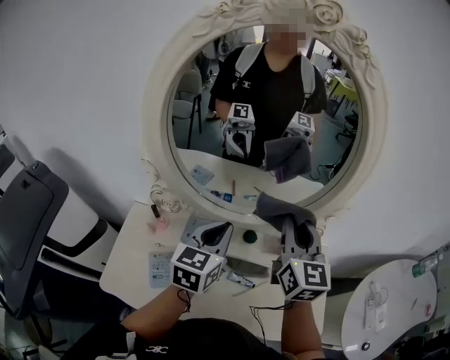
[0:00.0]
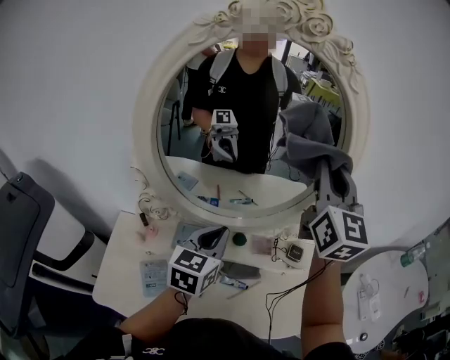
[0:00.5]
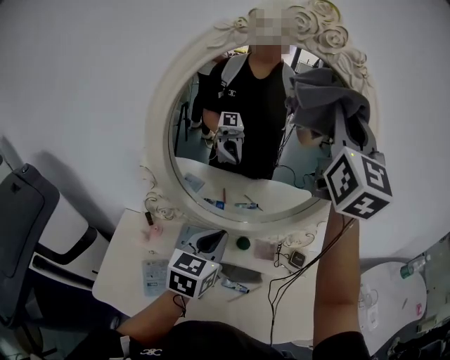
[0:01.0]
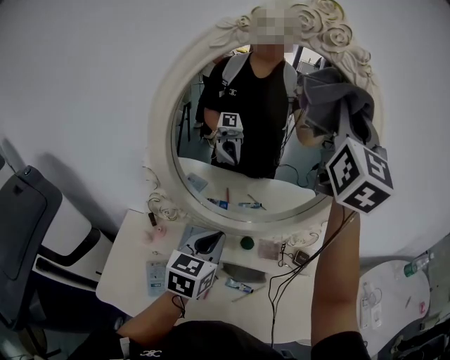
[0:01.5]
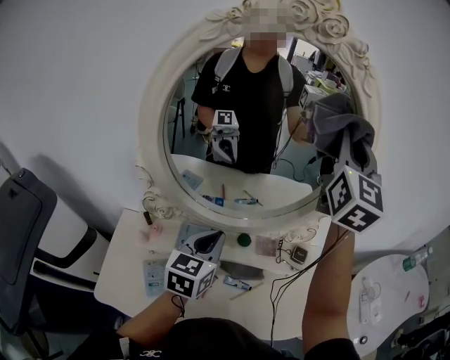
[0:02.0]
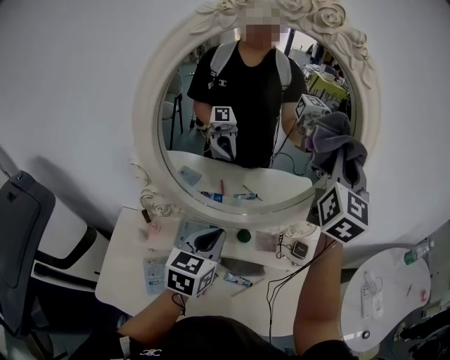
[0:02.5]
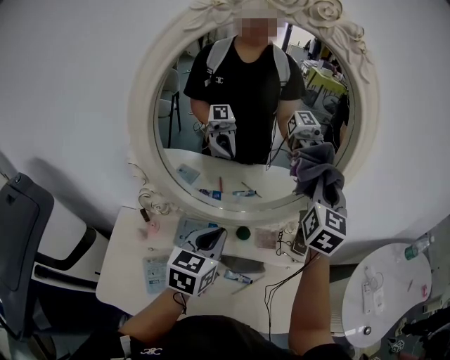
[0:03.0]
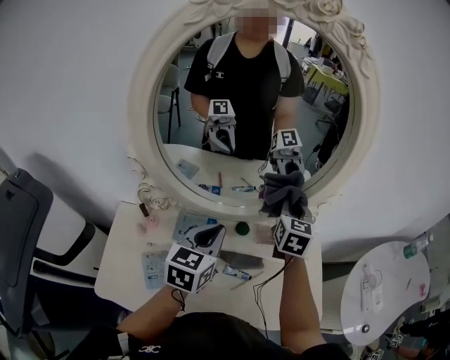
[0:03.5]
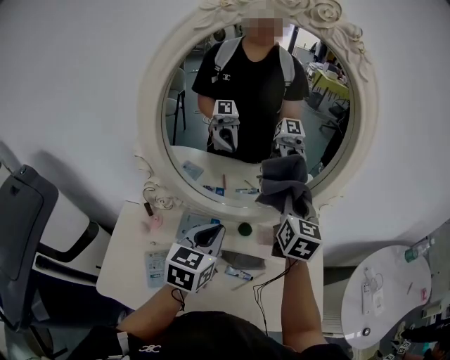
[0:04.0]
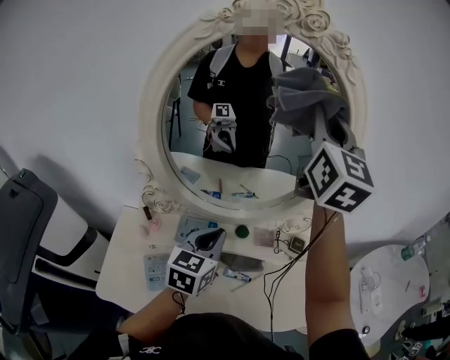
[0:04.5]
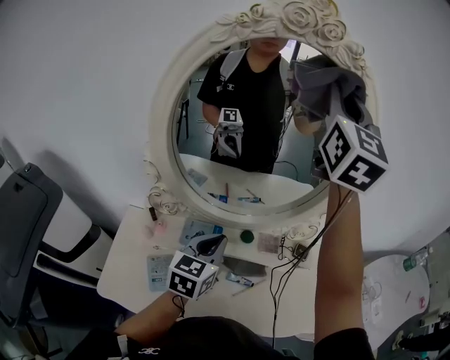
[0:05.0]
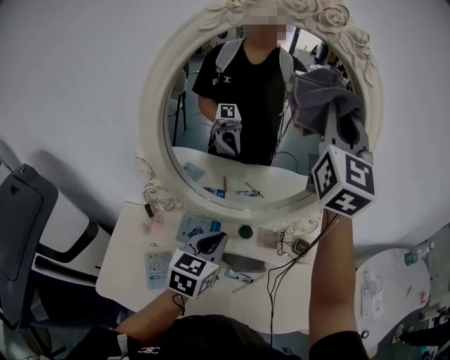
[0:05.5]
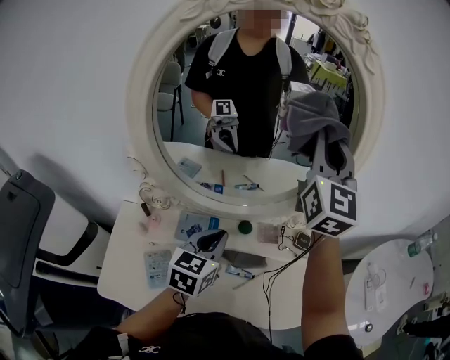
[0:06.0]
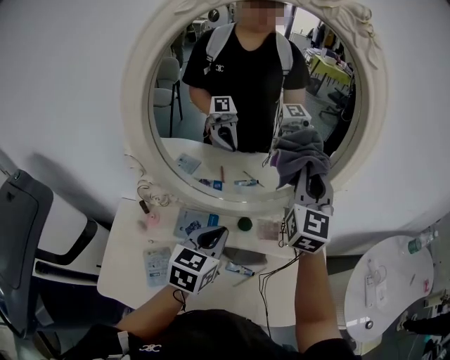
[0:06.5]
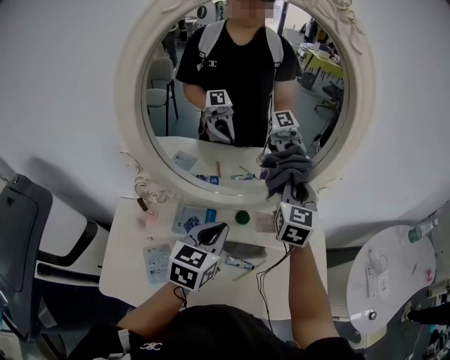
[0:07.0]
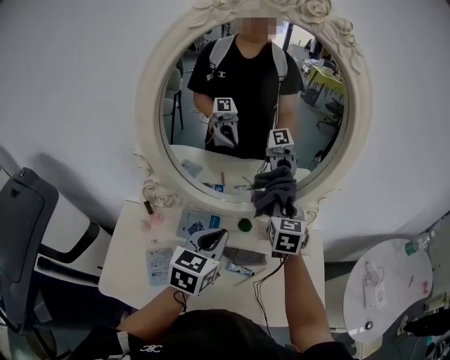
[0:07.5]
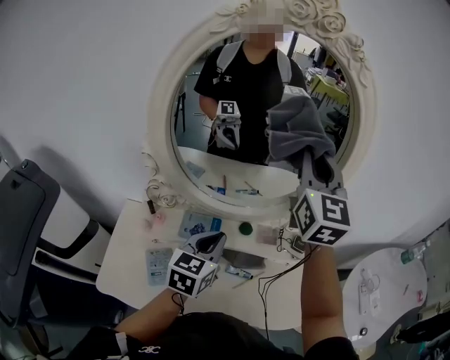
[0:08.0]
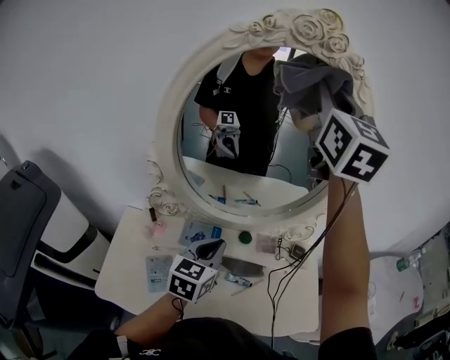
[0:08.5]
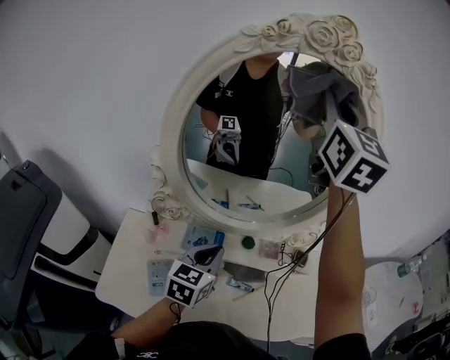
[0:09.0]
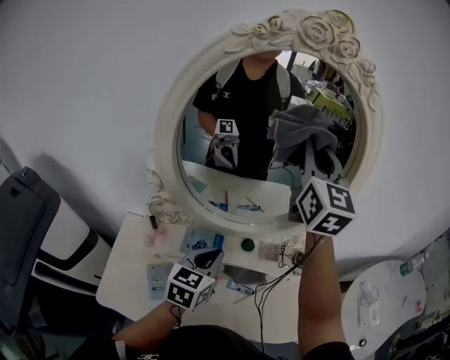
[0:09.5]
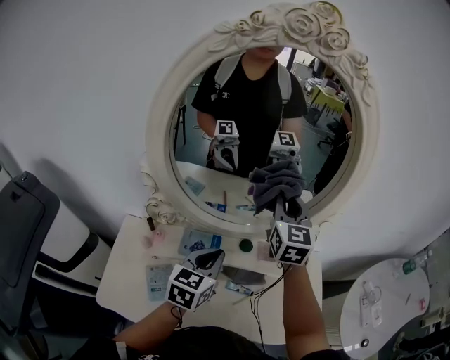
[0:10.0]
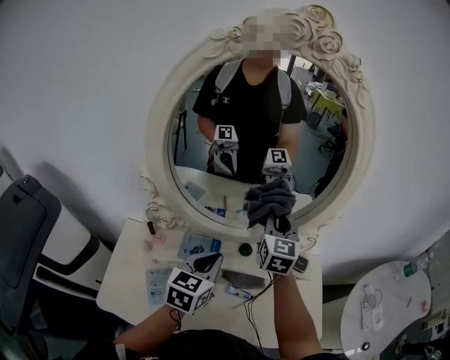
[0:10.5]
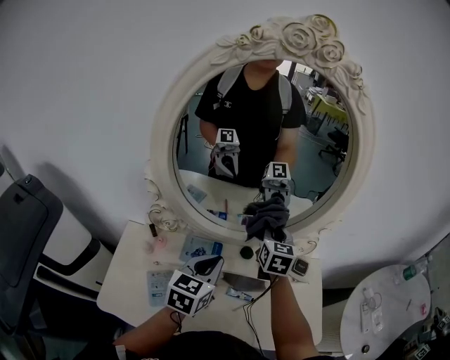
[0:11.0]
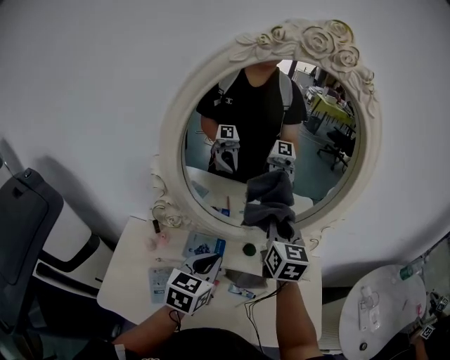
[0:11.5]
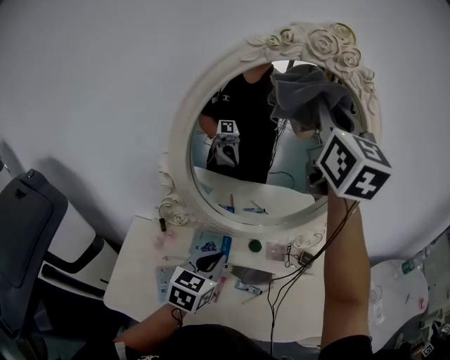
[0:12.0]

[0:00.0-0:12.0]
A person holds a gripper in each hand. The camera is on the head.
0:00.0 to 0:02.0: The right gripper is displaced upward by approximately 20 cm, and swivels about 30 degrees.
0:02.0 to 0:04.0: The right gripper heads downward, covering about 25 cm, and swivels about 30 degrees.
0:04.0 to 0:06.0: The right gripper shifts about 20 cm upward, and swivels some 30 degrees.
0:06.0 to 0:08.0: The right gripper reaches roughly 30 cm downward, then returns.
0:08.0 to 0:10.0: The right gripper goes some 15 cm downward.
0:10.0 to 0:12.0: The right gripper goes some 30 cm upward.

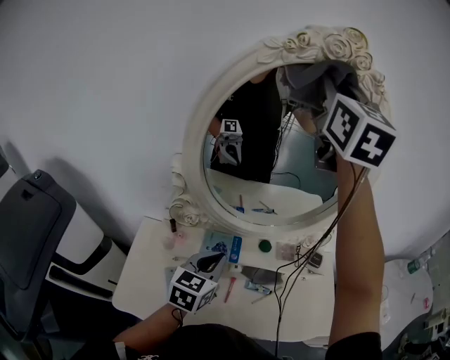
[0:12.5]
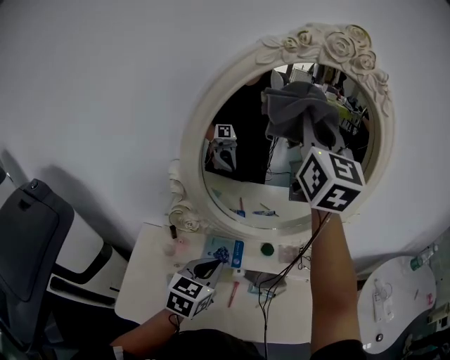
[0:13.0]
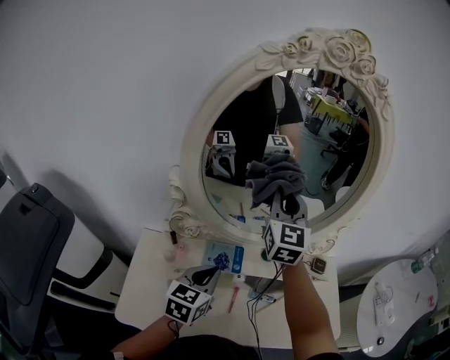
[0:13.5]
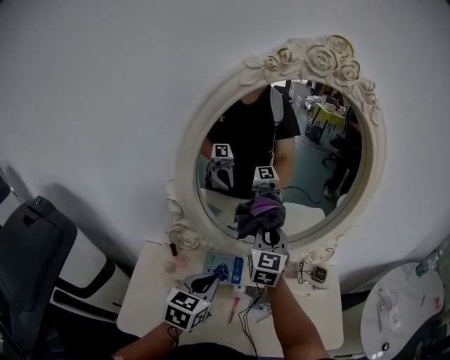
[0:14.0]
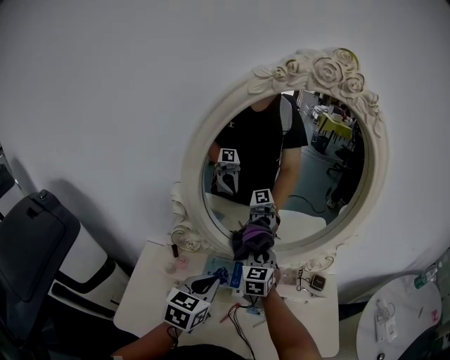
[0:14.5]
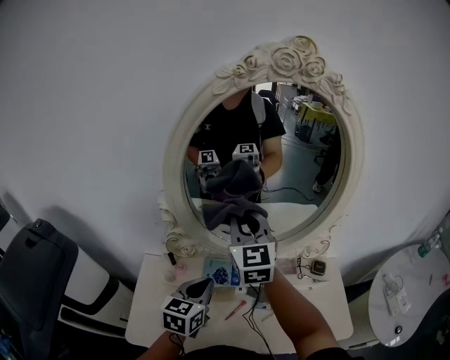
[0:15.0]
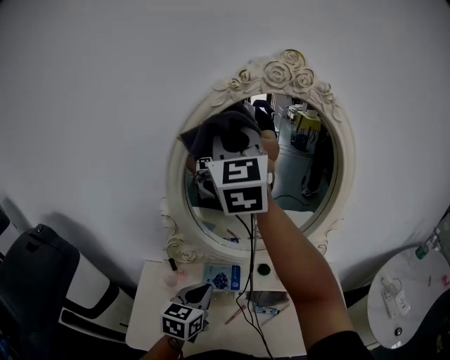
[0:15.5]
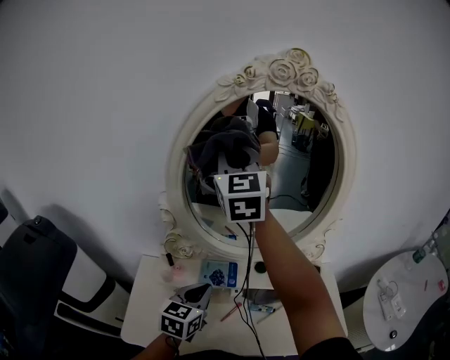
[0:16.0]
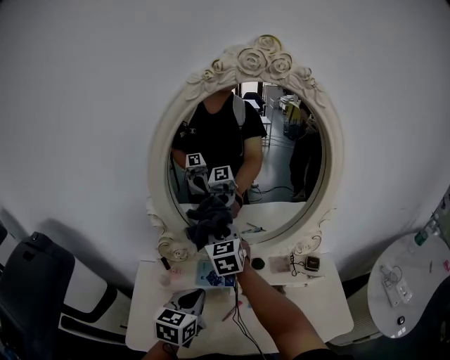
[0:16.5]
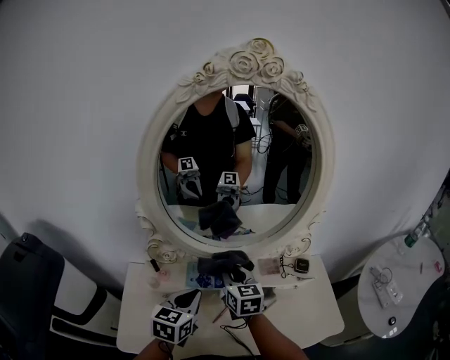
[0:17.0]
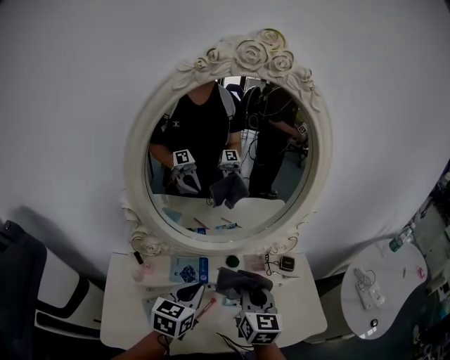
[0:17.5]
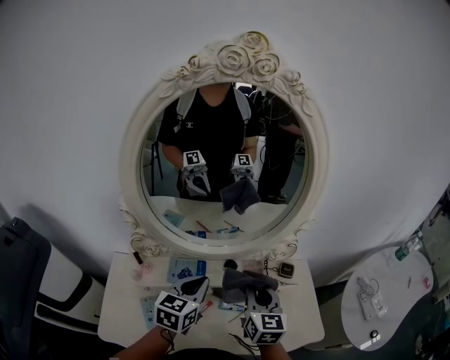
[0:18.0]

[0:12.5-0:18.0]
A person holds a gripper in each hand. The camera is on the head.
0:12.5 to 0:14.5: The right gripper moves downward, roughly 50 cm, and changes its angle by roughly 30 degrees.
0:14.5 to 0:16.0: The right gripper travels upward by approximately 40 cm, and turns by about 30 degrees.
0:16.0 to 0:18.0: The right gripper heads downward and to the right, covering some 40 cm, and turns by about 40 degrees. Meanwhile the left gripper shifts about 10 cm to the right.

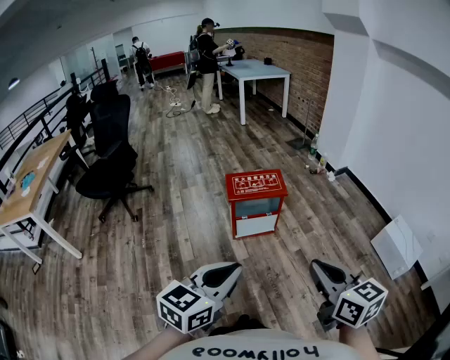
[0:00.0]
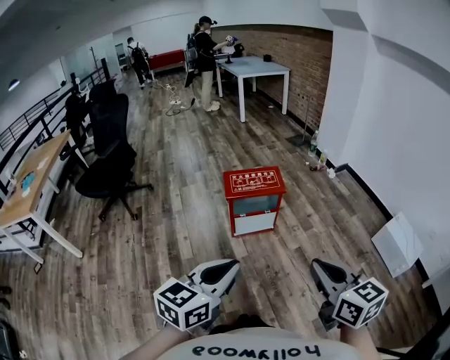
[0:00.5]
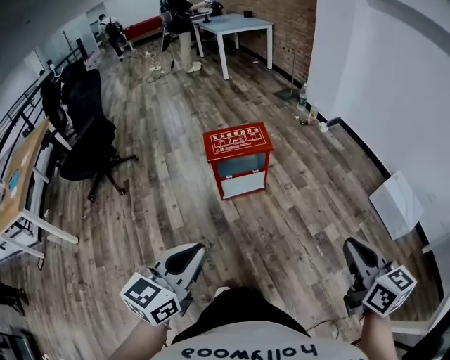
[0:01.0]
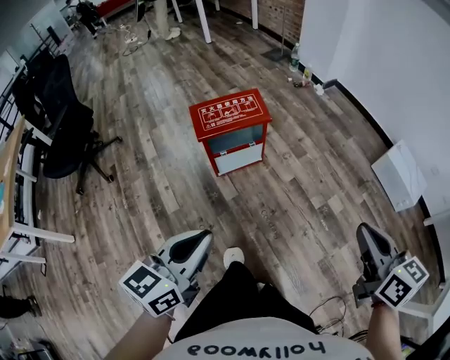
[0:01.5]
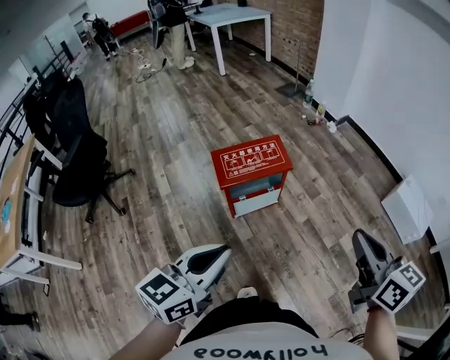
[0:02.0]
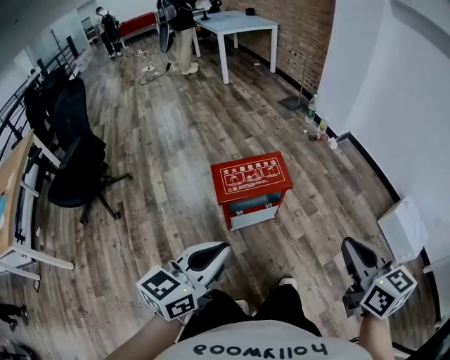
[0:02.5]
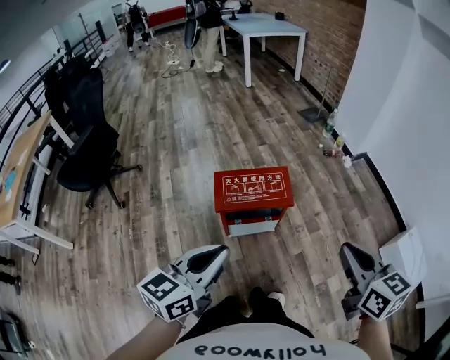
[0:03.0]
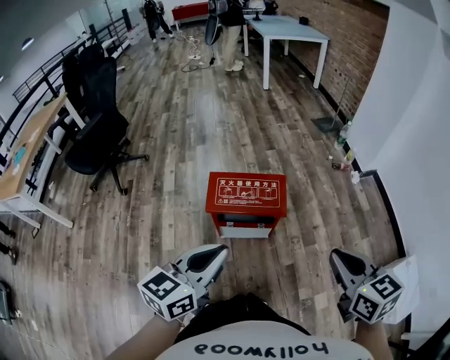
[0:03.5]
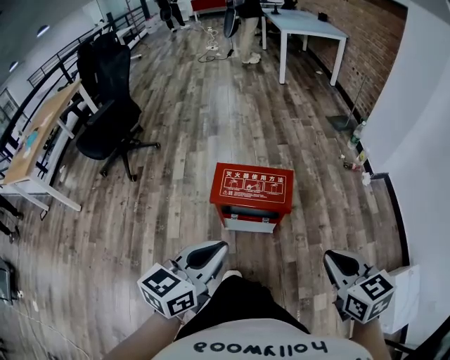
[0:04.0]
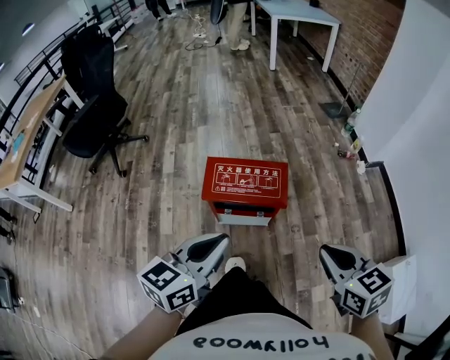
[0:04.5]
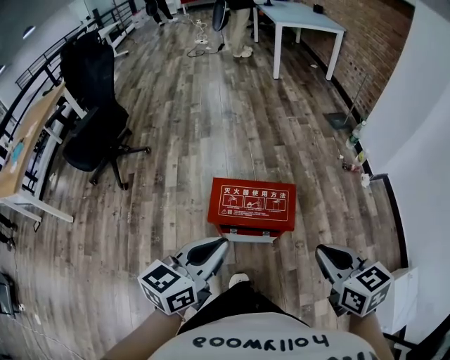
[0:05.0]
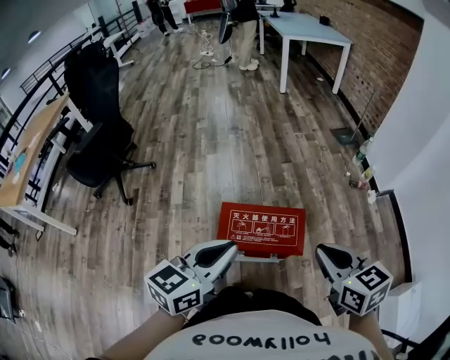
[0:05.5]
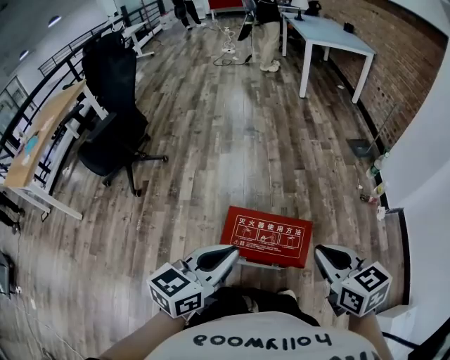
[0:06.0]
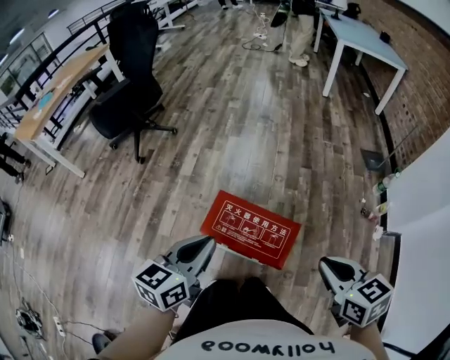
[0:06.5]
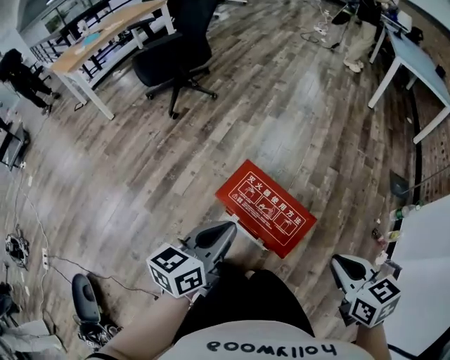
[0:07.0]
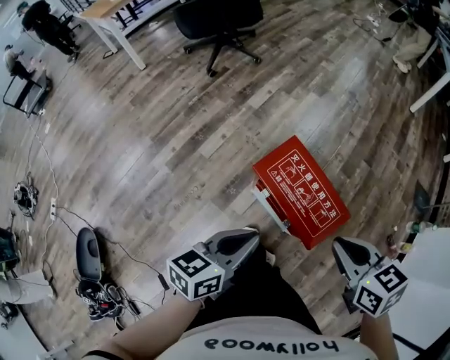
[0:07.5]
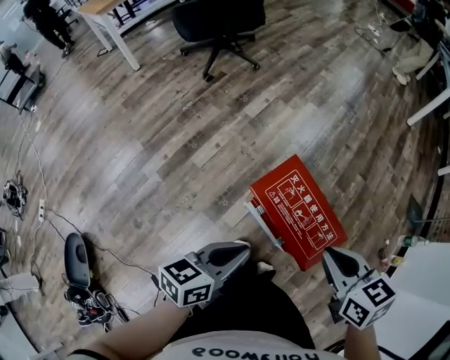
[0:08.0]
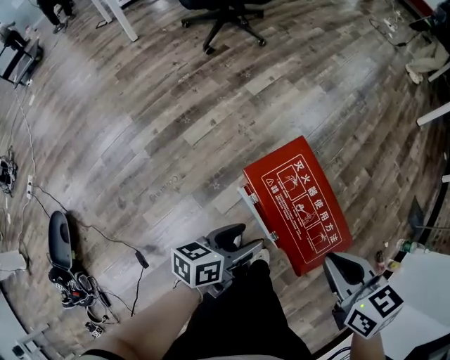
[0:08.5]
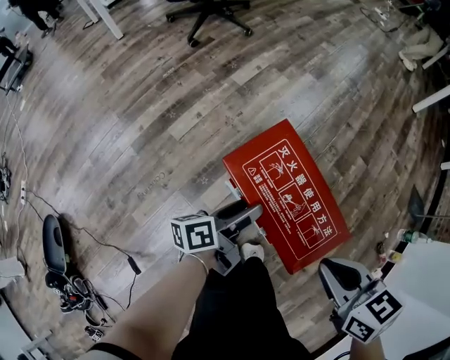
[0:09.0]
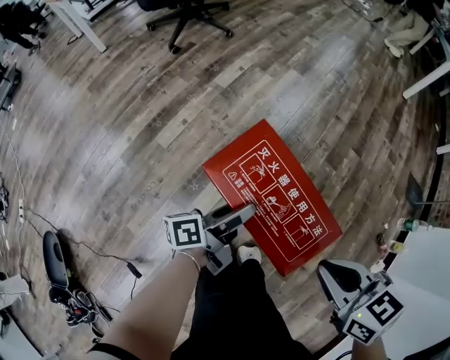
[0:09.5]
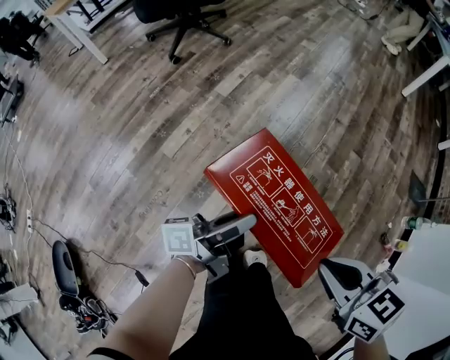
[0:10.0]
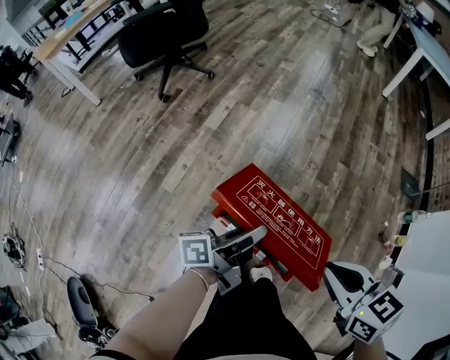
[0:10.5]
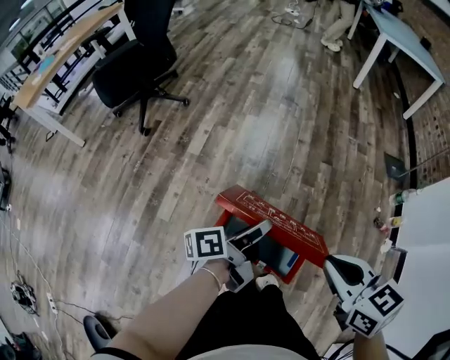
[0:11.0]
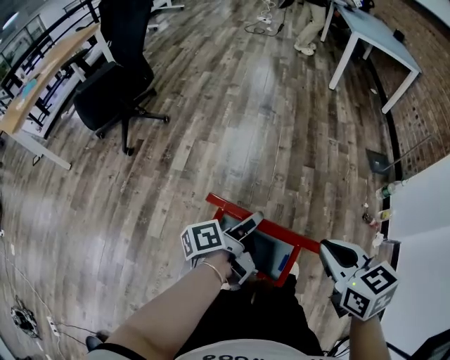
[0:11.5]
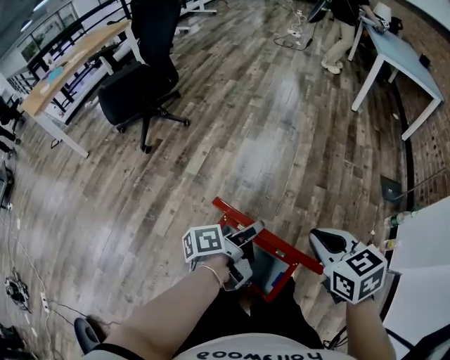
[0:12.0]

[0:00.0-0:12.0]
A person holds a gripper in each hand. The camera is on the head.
0:00.0 to 0:02.0: Both grippers move forward, roughly 20 cm.
0:02.0 to 0:04.0: The right gripper changes place by some 20 cm, and changes its angle by roughly 40 degrees; the left gripper ends up roughly 20 cm from where it was, and changes its angle by about 30 degrees.
0:04.0 to 0:06.0: The right gripper shifts approximately 25 cm forward and to the left. Meanwhile the left gripper travels forward by approximately 20 cm.
0:06.0 to 0:08.0: The left gripper shifts about 15 cm downward, and changes its angle by roughly 40 degrees. The right gripper goes roughly 10 cm downward, and rotates about 40 degrees.
0:08.0 to 0:10.0: The right gripper shifts roughly 10 cm downward and to the right; the left gripper is displaced downward, to the right and forward by some 15 cm, tilts its fingers some 30 degrees upward, and opens its fingers.
0:10.0 to 0:12.0: The left gripper shifts by about 20 cm, and rotates about 30 degrees, while the right gripper moves approximately 20 cm, and swivels about 20 degrees.
